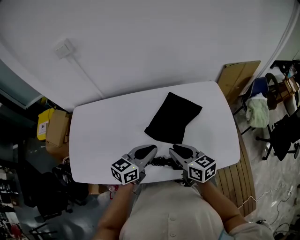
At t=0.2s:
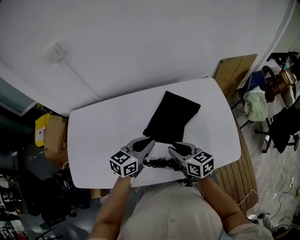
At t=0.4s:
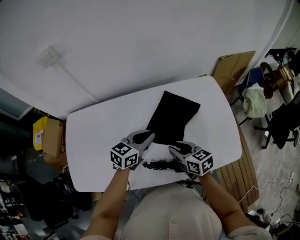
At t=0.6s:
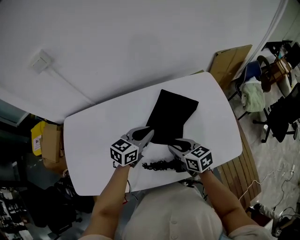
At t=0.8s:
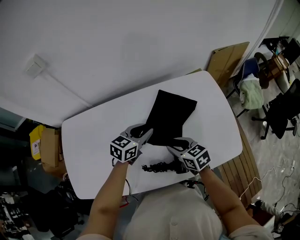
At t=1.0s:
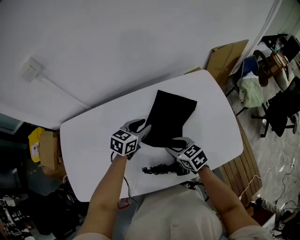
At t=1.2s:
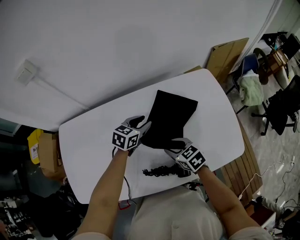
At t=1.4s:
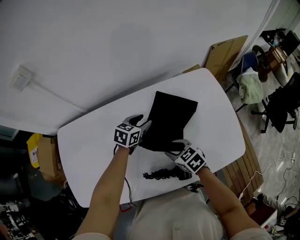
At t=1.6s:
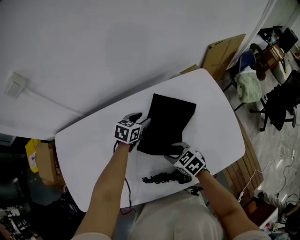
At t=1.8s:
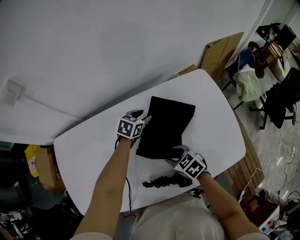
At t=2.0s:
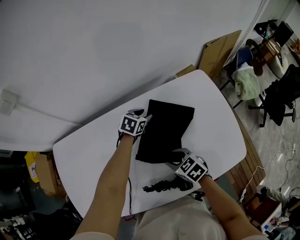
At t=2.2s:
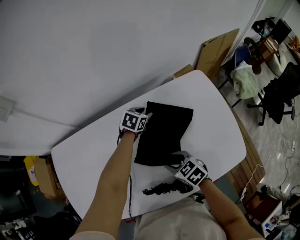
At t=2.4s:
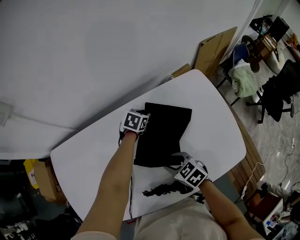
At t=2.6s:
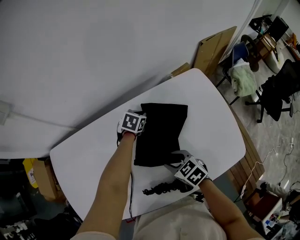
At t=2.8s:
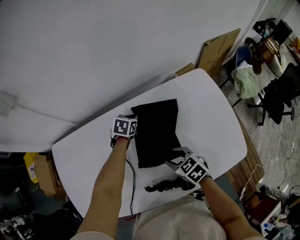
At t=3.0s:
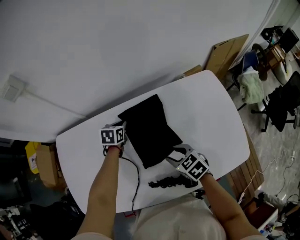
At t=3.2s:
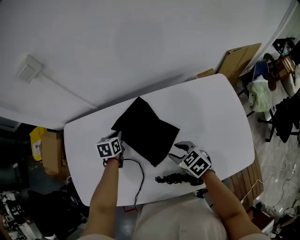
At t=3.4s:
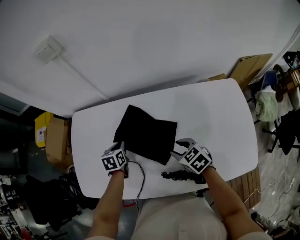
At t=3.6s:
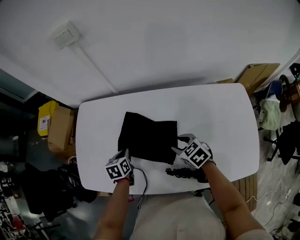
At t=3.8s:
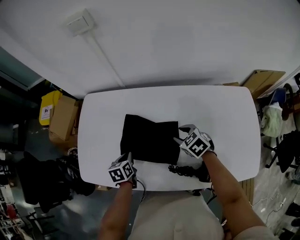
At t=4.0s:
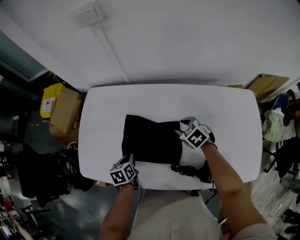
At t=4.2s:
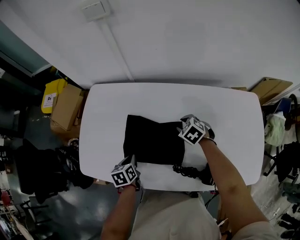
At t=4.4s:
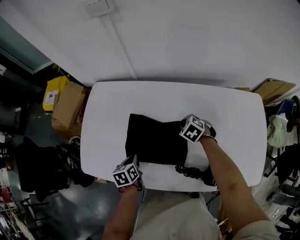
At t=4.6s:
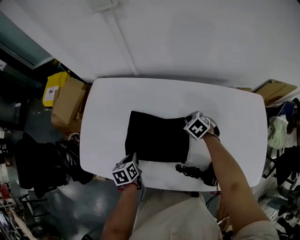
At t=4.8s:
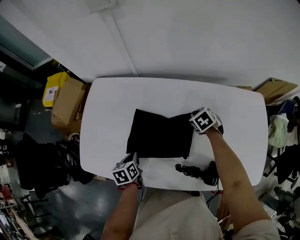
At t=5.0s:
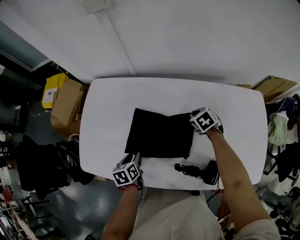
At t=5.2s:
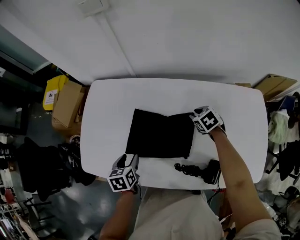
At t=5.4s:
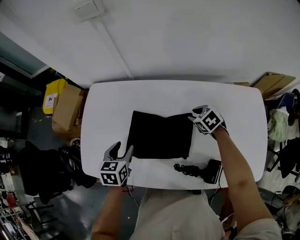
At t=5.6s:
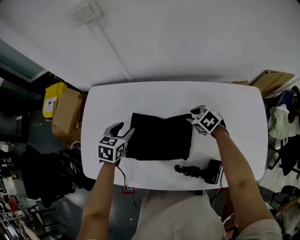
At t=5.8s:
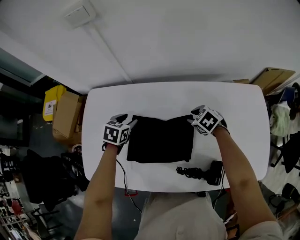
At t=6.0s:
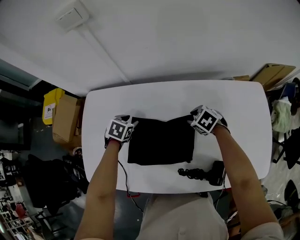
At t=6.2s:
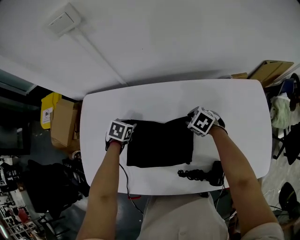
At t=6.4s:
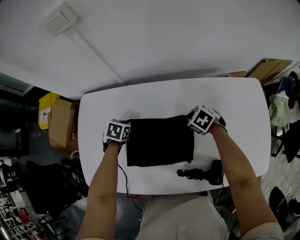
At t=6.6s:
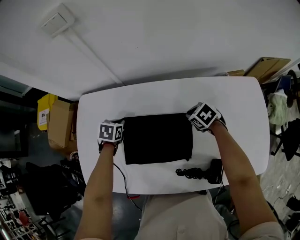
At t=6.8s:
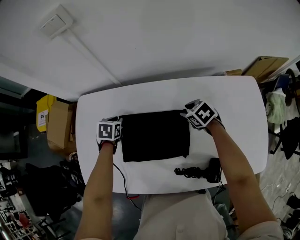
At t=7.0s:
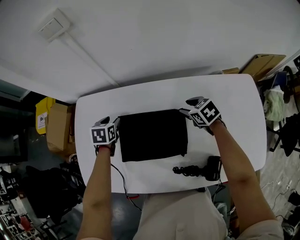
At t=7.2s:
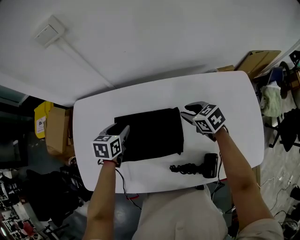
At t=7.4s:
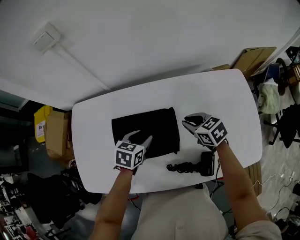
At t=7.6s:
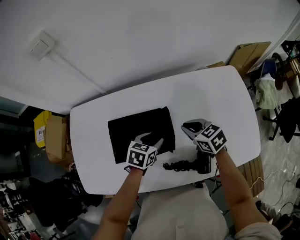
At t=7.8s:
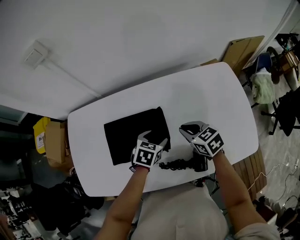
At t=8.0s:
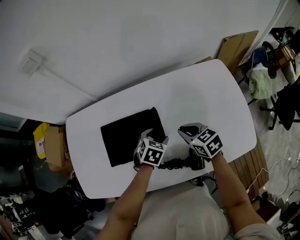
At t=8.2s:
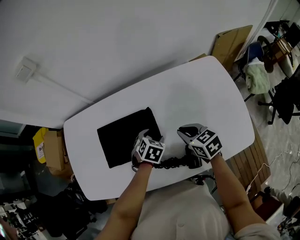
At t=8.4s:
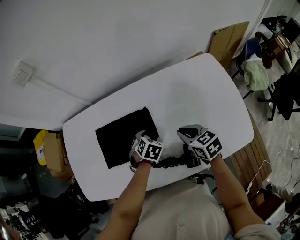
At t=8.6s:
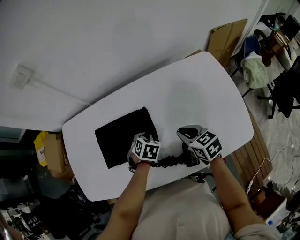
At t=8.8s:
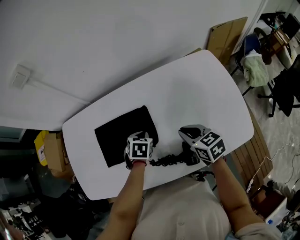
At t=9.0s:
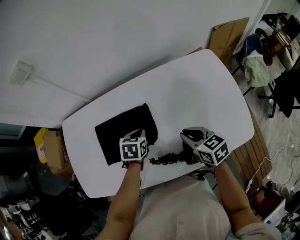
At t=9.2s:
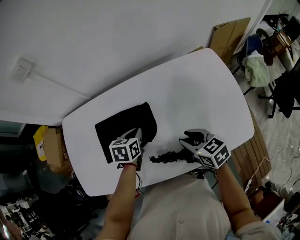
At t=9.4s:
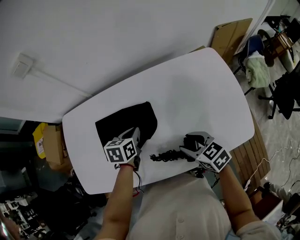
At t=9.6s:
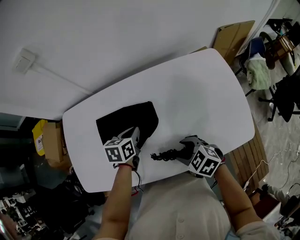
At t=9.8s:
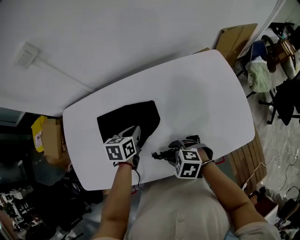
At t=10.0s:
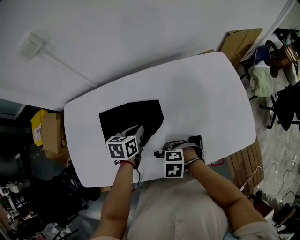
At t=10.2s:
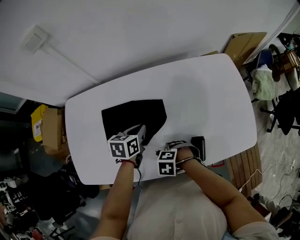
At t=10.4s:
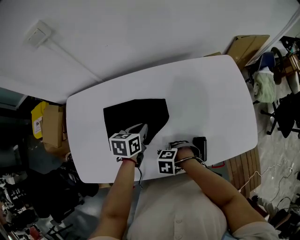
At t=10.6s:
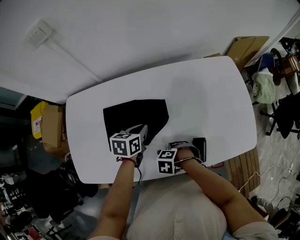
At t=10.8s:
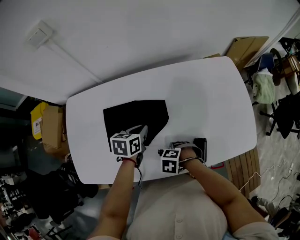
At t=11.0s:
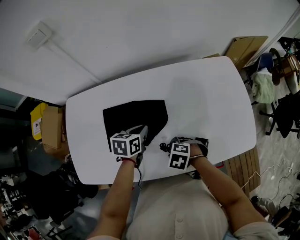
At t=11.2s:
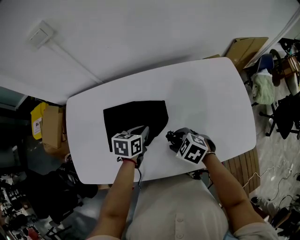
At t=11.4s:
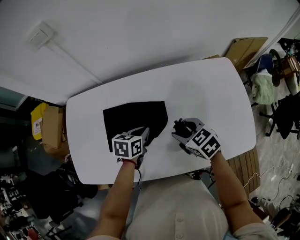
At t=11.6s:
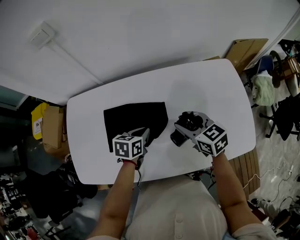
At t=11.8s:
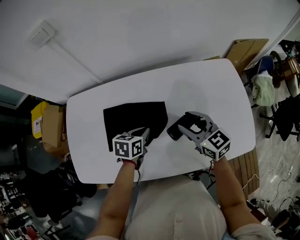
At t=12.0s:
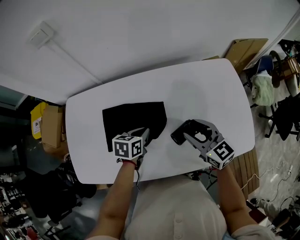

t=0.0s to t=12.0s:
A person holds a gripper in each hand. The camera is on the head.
t=0.0s to t=1.6s: The right gripper is displaced downward and forward by about 15 cm, and turns by about 30 degrees. Meanwhile the left gripper is displaced forward and downward by about 30 cm, turns by some 30 degrees, and opens.
t=1.6s to t=3.0s: The left gripper goes about 15 cm to the left, swivels roughly 30 degrees, and closes its fingers.
t=3.0s to t=4.4s: The left gripper moves to the left and backward, approximately 35 cm, and rotates around the line of its fingers by roughly 40 degrees, counterclockwise from behind; the right gripper goes roughly 20 cm forward, to the left and downward, and changes its angle by roughly 40 degrees.
t=4.4s to t=6.0s: The left gripper heads forward, covering some 20 cm, rotates around the line of its fingers by approximately 50 degrees, clockwise from behind, and opens its fingers; the right gripper goes about 5 cm to the right.
t=6.0s to t=7.6s: The right gripper is displaced backward and upward by some 15 cm, rotates roughly 30 degrees, and closes up, while the left gripper goes roughly 25 cm to the right and backward, and closes, then reopens.
t=7.6s to t=9.0s: The left gripper closes its fingers. The right gripper goes roughly 10 cm backward and to the right.
t=9.0s to t=10.4s: The left gripper changes place by about 5 cm, while the right gripper changes place by approximately 20 cm, points its fingers approximately 50 degrees further downward, and opens up.
t=10.4s to t=12.0s: The right gripper shifts approximately 20 cm upward, and tilts its fingers approximately 60 degrees upward.

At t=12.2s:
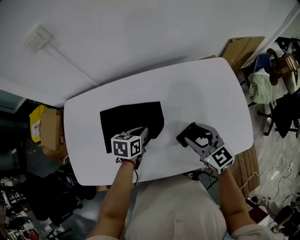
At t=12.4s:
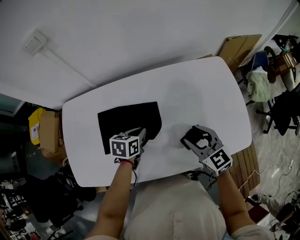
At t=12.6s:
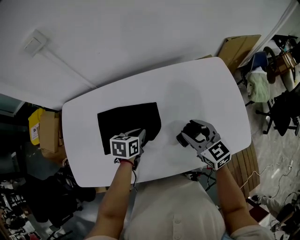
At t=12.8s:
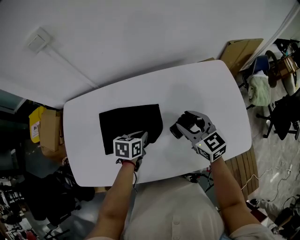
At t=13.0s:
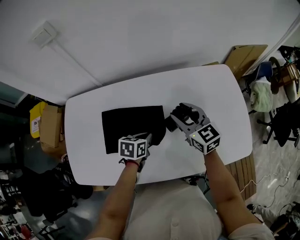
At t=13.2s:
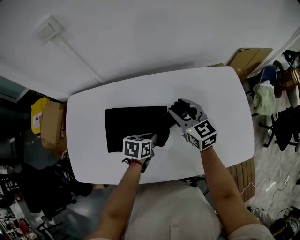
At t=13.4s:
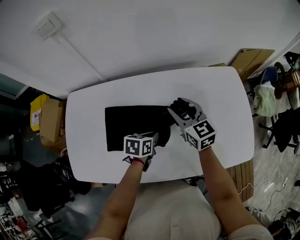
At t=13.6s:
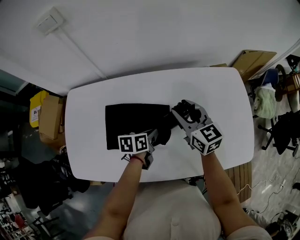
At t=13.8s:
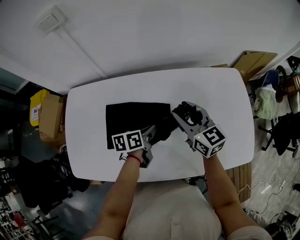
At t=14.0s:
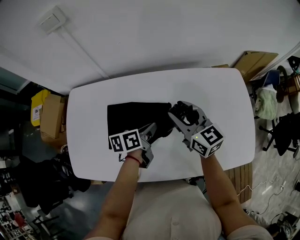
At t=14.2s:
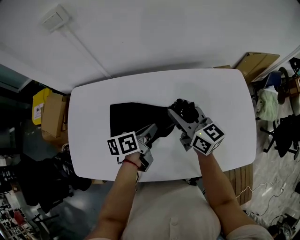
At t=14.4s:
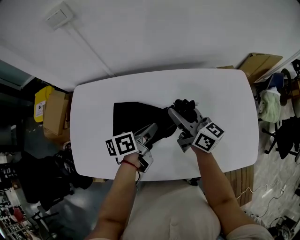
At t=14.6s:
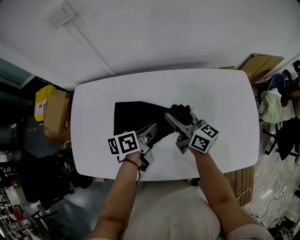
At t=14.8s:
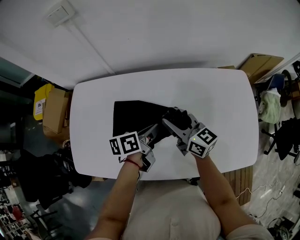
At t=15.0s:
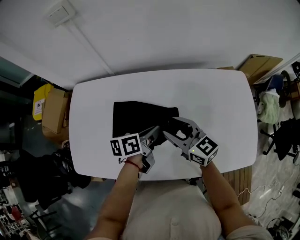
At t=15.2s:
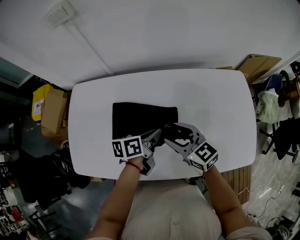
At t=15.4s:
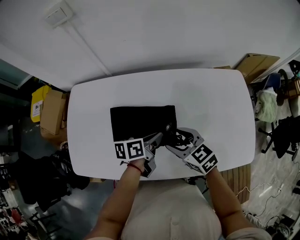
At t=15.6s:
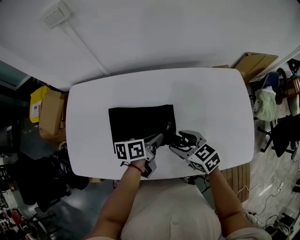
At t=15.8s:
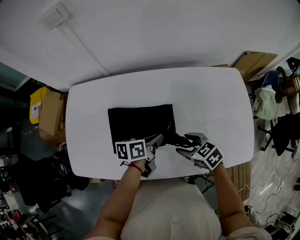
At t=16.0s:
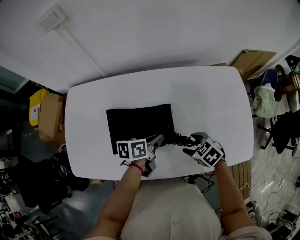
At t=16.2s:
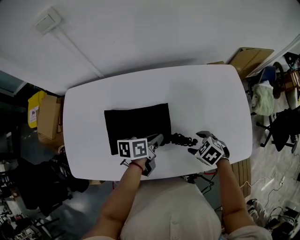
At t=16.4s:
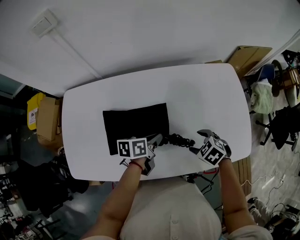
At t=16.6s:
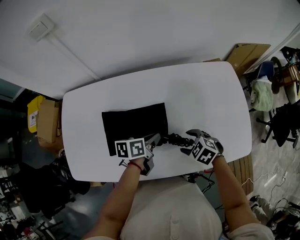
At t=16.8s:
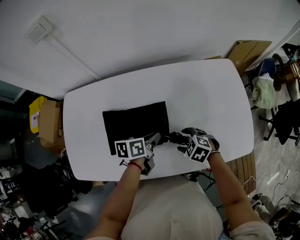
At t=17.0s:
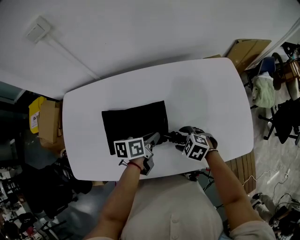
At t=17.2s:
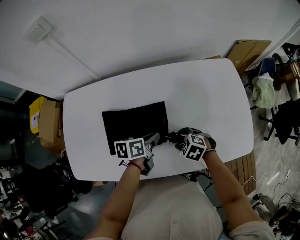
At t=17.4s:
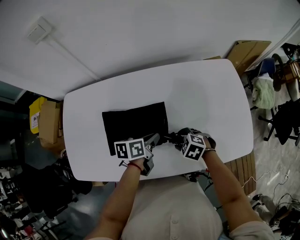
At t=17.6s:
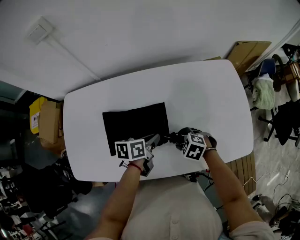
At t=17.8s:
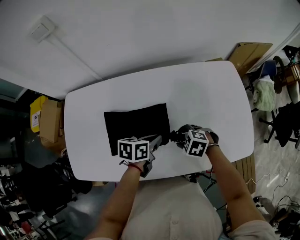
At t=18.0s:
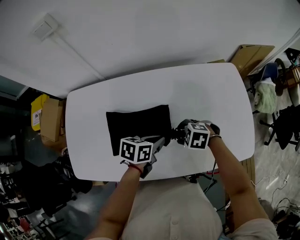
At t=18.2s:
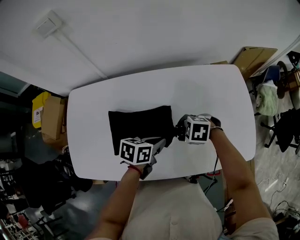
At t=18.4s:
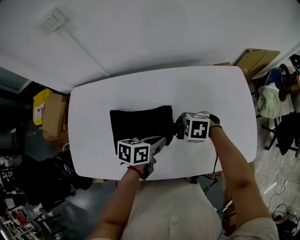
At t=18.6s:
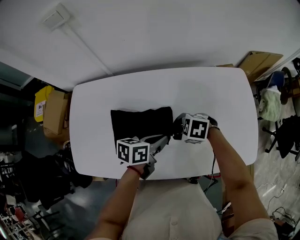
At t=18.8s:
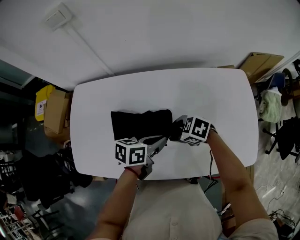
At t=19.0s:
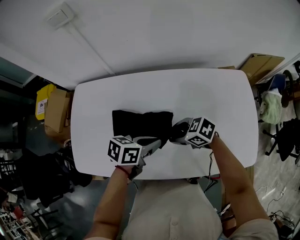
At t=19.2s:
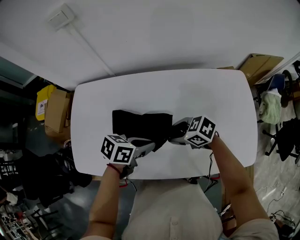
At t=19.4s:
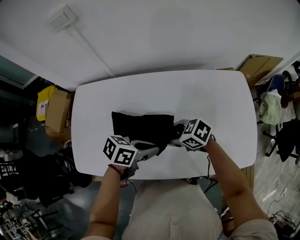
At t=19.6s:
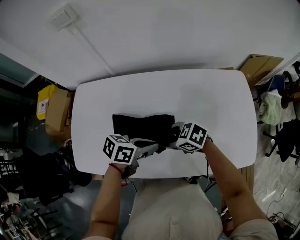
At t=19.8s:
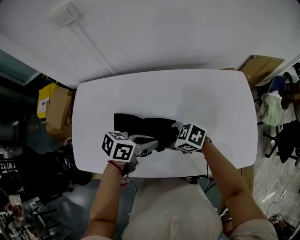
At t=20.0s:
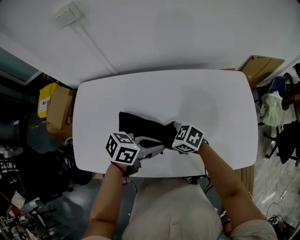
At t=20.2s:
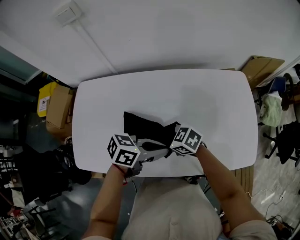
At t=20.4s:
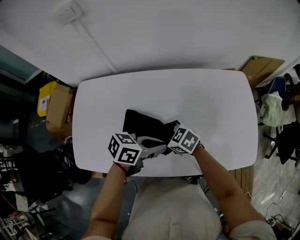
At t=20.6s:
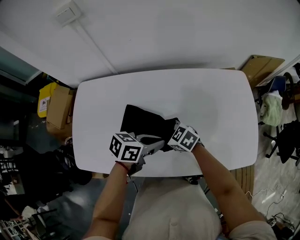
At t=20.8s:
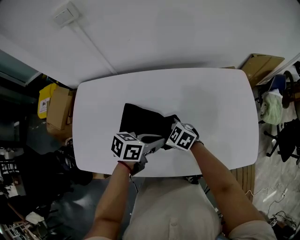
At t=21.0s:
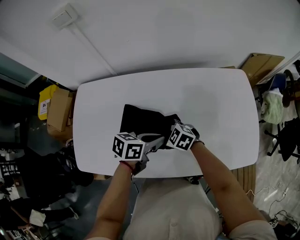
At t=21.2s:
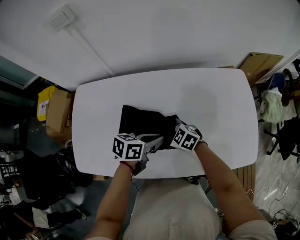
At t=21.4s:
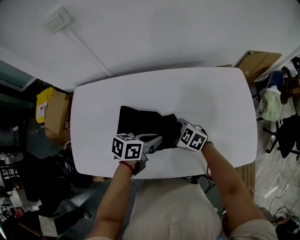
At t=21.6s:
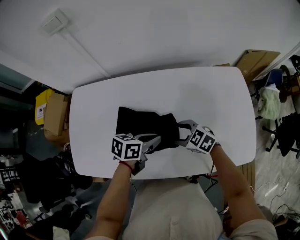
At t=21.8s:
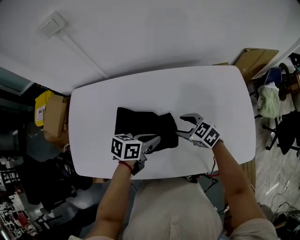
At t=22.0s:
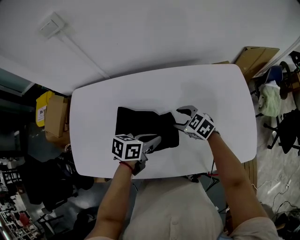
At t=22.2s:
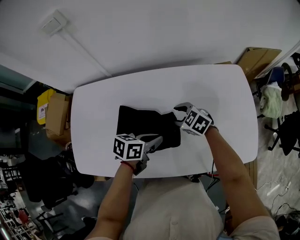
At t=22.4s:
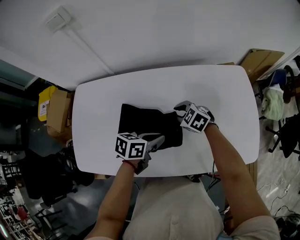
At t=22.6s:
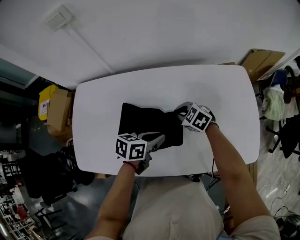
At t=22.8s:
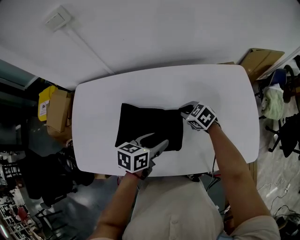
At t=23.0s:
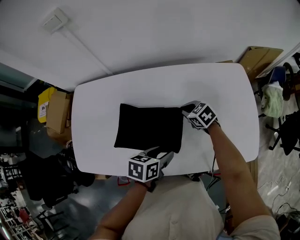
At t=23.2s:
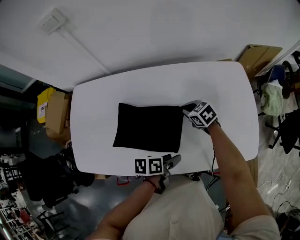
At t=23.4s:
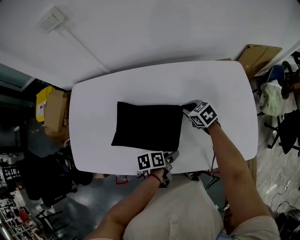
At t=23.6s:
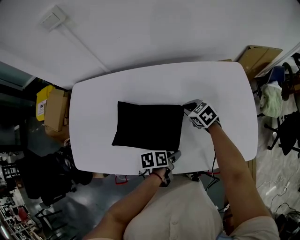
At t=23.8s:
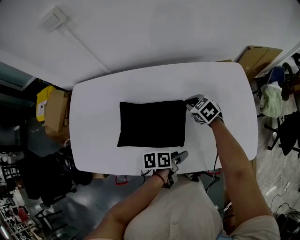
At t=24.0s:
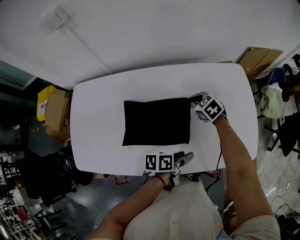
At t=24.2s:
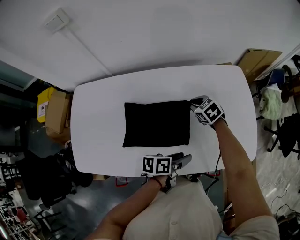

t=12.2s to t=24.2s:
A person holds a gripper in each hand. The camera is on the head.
t=12.2s to t=13.8s: The right gripper shifts about 15 cm forward and to the left. Meanwhile the left gripper turns by some 30 degrees.
t=13.8s to t=15.2s: The right gripper travels backward and to the left by approximately 10 cm. Meanwhile the left gripper moves some 5 cm.
t=15.2s to t=16.6s: The right gripper travels downward, to the right and backward by approximately 20 cm, and angles its fingers downward, by roughly 40 degrees. The left gripper changes place by some 5 cm.
t=16.6s to t=18.2s: The right gripper ends up about 5 cm from where it was, and swivels some 30 degrees.
t=18.2s to t=19.8s: The left gripper goes about 5 cm upward, while the right gripper moves approximately 10 cm, and swivels approximately 30 degrees.
t=19.8s to t=21.2s: The right gripper heads downward, covering approximately 5 cm.
t=21.2s to t=22.6s: The right gripper shifts by approximately 10 cm, and closes.
t=22.6s to t=24.2s: The right gripper moves roughly 10 cm, and swivels approximately 20 degrees, while the left gripper moves approximately 10 cm downward and comes back, rotates roughly 20 degrees, and opens its fingers.
